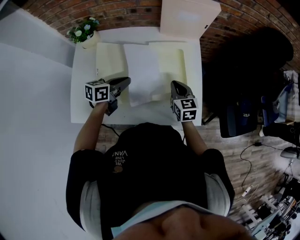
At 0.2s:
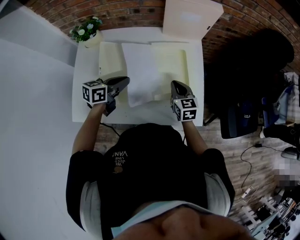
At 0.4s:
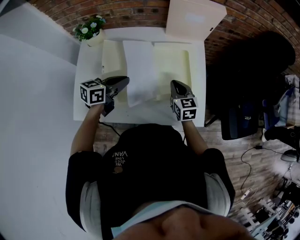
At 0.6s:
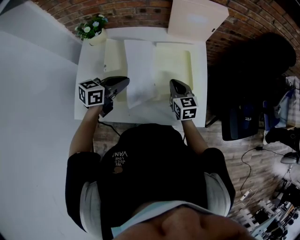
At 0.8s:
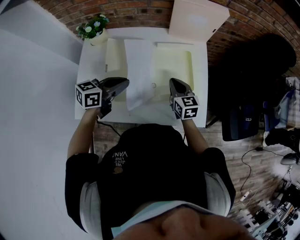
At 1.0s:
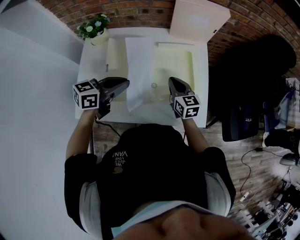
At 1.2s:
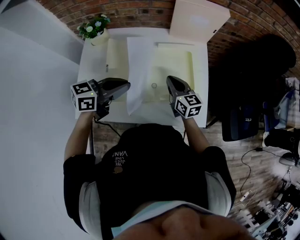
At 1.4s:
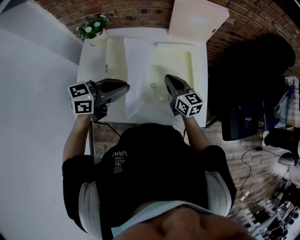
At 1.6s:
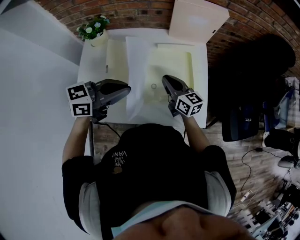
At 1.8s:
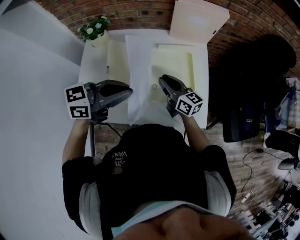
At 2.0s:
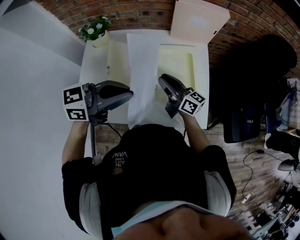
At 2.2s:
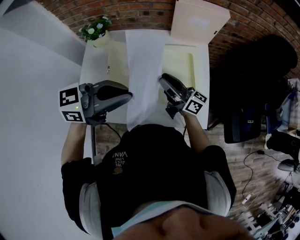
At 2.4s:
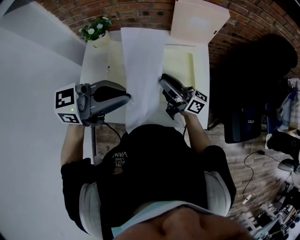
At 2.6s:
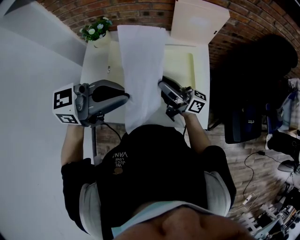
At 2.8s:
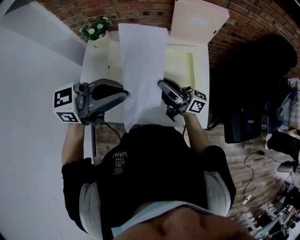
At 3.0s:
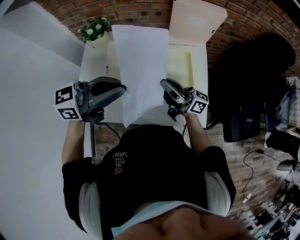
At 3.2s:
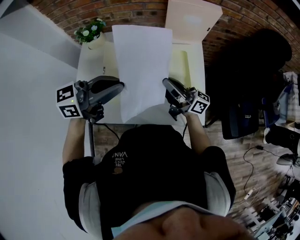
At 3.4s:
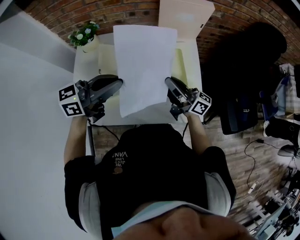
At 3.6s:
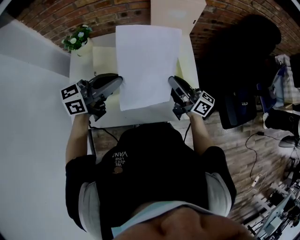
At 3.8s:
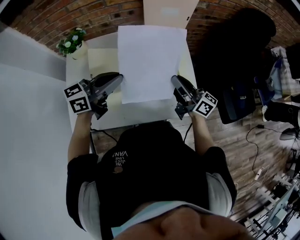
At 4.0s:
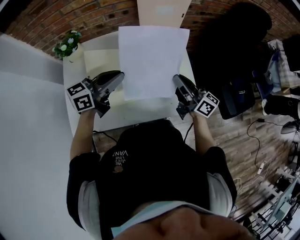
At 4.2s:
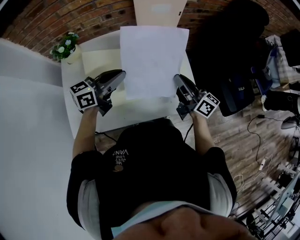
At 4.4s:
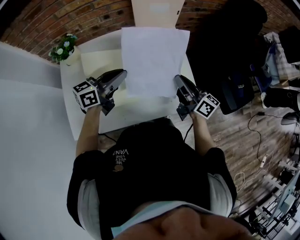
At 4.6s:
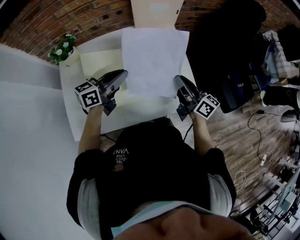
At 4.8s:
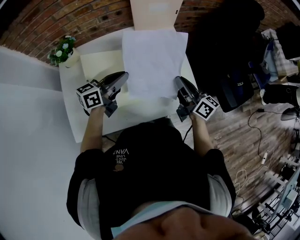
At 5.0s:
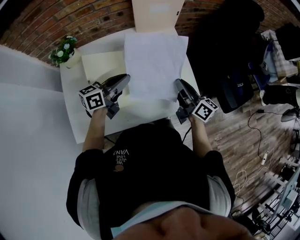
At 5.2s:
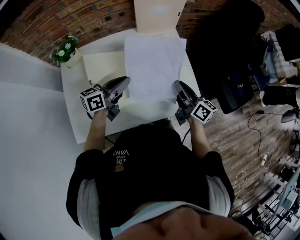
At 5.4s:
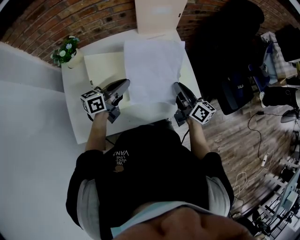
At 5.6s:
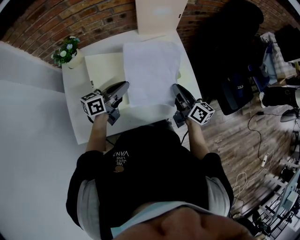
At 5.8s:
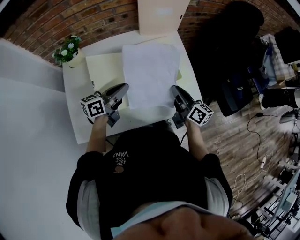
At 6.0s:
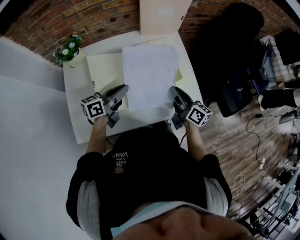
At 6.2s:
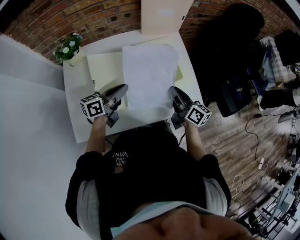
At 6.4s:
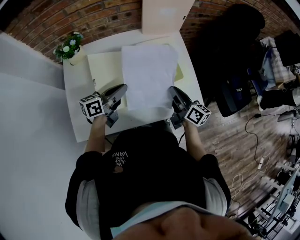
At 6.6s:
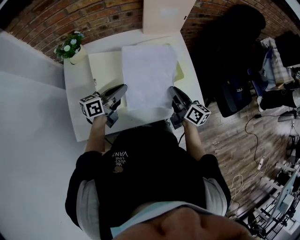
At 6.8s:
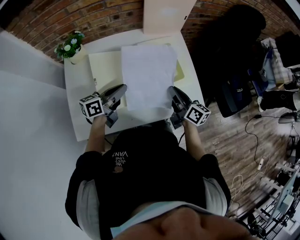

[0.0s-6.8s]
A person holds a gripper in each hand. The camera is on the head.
0.0s to 1.4s: The right gripper moves to the left and upward, about 10 cm, and swivels roughly 20 degrees. Meanwhile the left gripper shifts roughly 15 cm upward and backward, and swivels approximately 20 degrees.
1.4s to 2.8s: The two grippers go some 10 cm upward. The right gripper angles its fingers upward, by some 40 degrees.
2.8s to 4.0s: The right gripper changes place by roughly 15 cm, and turns by some 40 degrees, while the left gripper travels downward by about 10 cm.
4.0s to 5.4s: The left gripper goes approximately 10 cm downward. Meanwhile the right gripper moves roughly 5 cm.
5.4s to 6.8s: The right gripper moves approximately 5 cm. Meanwhile the left gripper ends up approximately 5 cm from where it was.

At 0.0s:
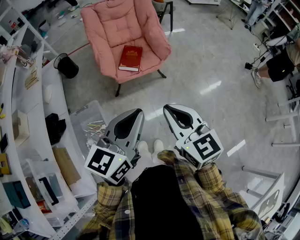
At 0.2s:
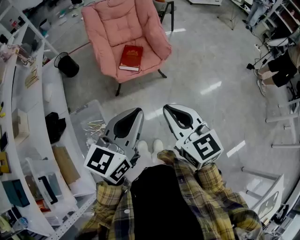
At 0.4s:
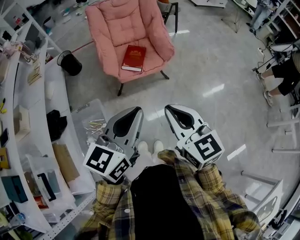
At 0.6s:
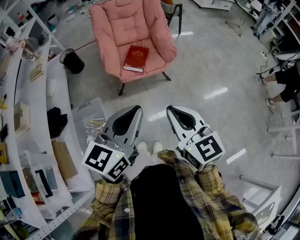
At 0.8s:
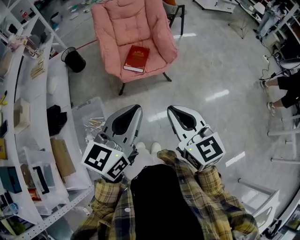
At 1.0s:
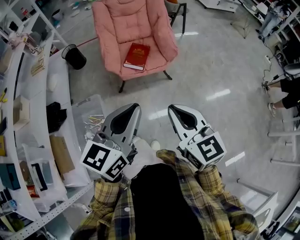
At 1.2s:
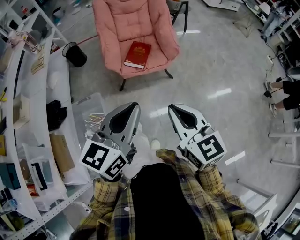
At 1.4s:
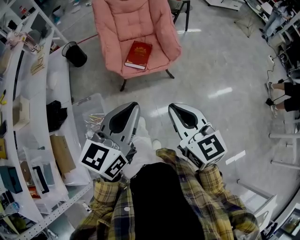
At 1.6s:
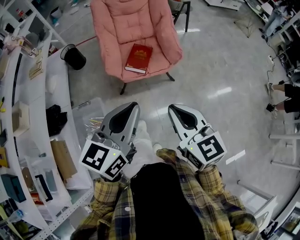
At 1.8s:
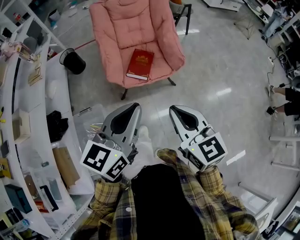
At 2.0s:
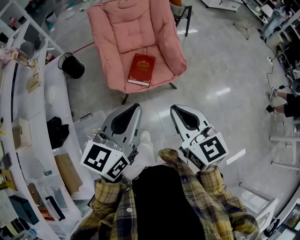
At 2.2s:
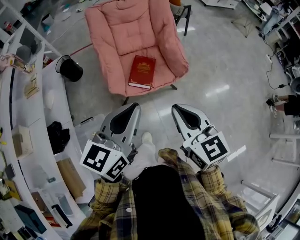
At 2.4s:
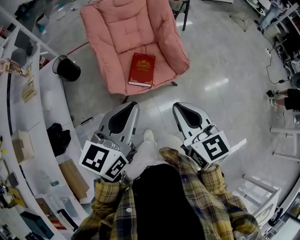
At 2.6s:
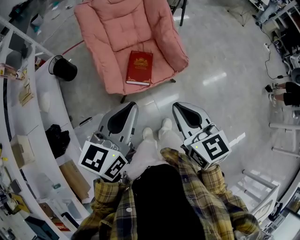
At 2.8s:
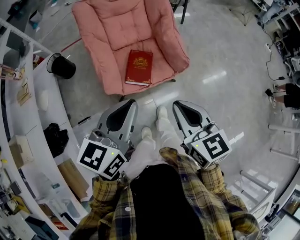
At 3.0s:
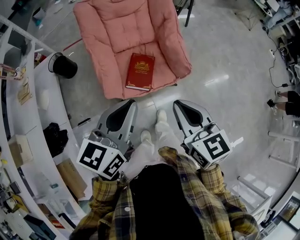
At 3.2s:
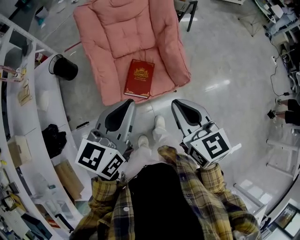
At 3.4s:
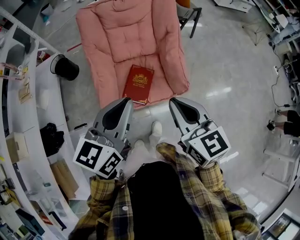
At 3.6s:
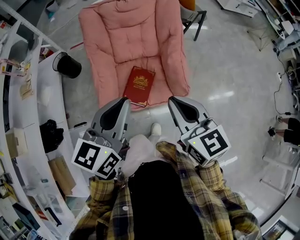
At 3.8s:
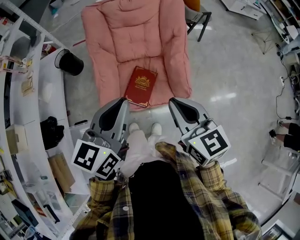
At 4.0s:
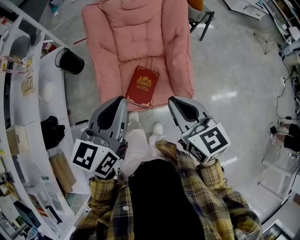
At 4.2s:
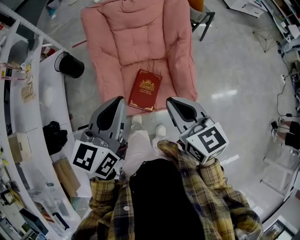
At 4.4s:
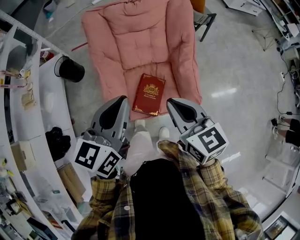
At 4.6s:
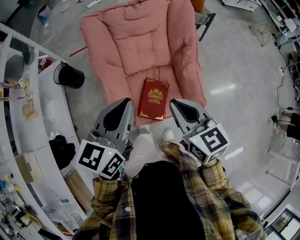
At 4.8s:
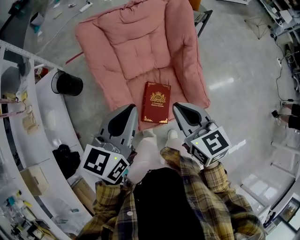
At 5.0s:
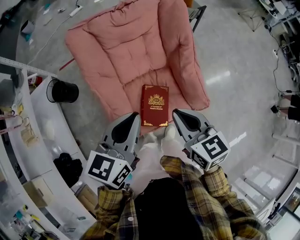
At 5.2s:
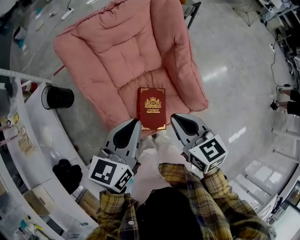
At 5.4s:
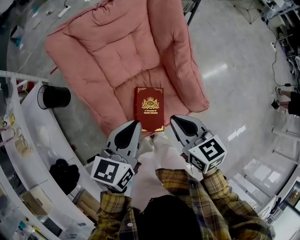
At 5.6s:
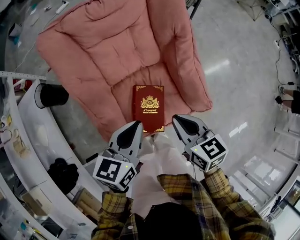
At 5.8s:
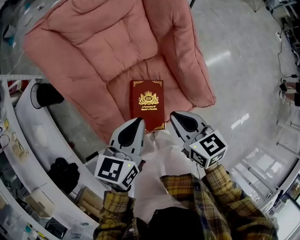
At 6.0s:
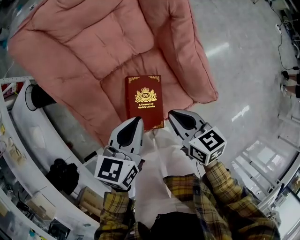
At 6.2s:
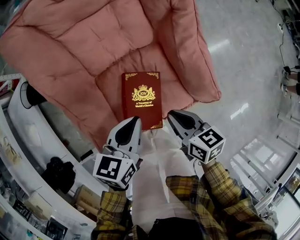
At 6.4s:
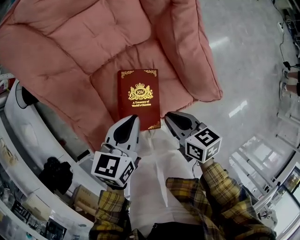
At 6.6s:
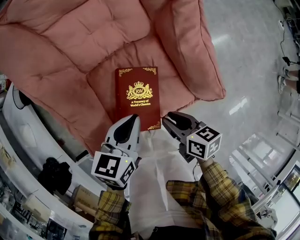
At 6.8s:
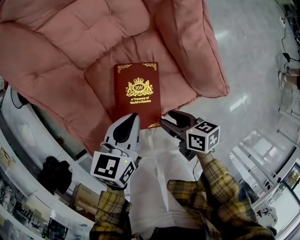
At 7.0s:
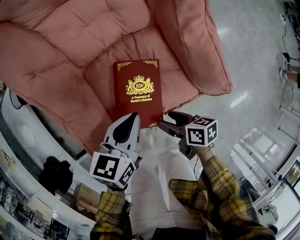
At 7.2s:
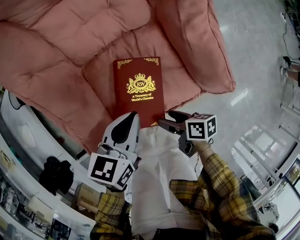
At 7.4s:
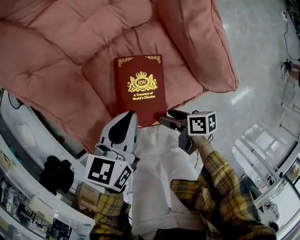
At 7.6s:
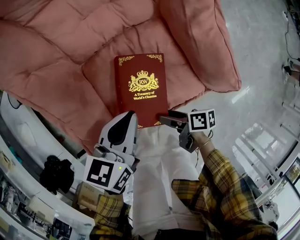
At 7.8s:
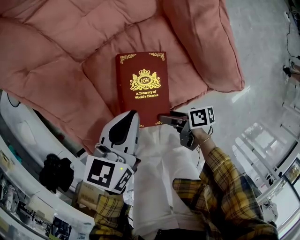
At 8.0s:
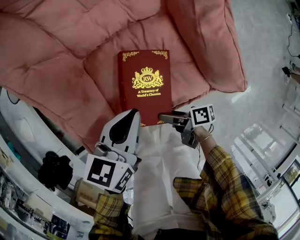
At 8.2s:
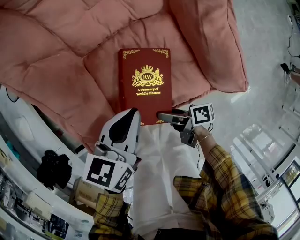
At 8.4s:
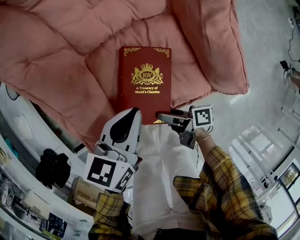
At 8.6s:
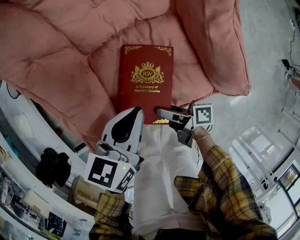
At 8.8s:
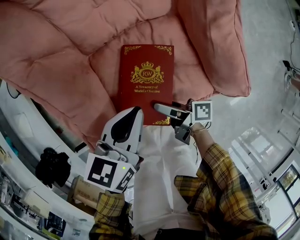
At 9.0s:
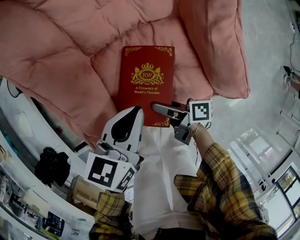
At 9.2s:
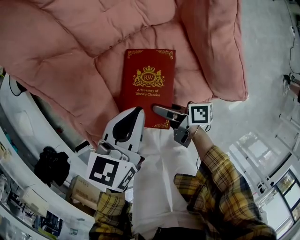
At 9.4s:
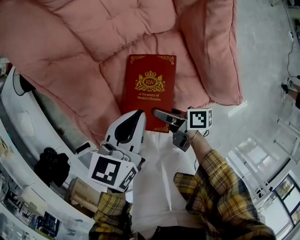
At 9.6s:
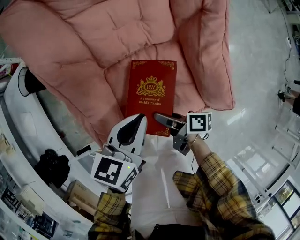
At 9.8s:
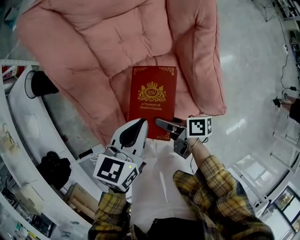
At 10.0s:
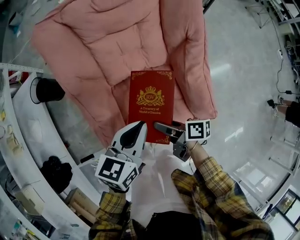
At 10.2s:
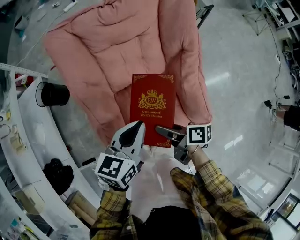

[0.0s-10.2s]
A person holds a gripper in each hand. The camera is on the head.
0.0s to 1.4s: The left gripper shifts some 5 cm forward, while the right gripper changes place by roughly 5 cm.
1.4s to 3.0s: The two grippers go approximately 30 cm forward.
3.0s to 4.4s: The grippers both shift forward by roughly 20 cm.
4.4s to 5.8s: Both grippers travel together downward, about 25 cm. The right gripper rotates approximately 20 degrees. Meanwhile the left gripper turns by about 30 degrees.
5.8s to 7.2s: The right gripper is displaced downward by approximately 25 cm, rotates around the line of its fingers by approximately 40 degrees, clockwise from behind, and opens its fingers. Meanwhile the left gripper goes approximately 15 cm downward.
7.2s to 8.8s: The right gripper is displaced forward by roughly 5 cm, and rotates roughly 30 degrees.
8.8s to 10.2s: The two grippers go approximately 20 cm upward. The right gripper rotates some 20 degrees.

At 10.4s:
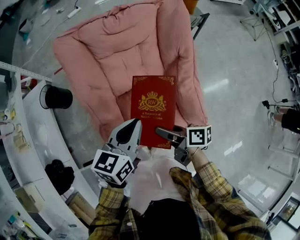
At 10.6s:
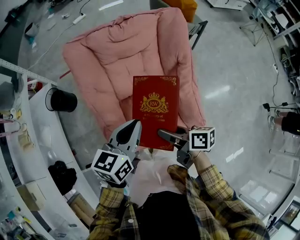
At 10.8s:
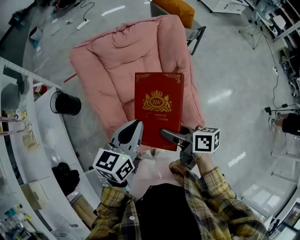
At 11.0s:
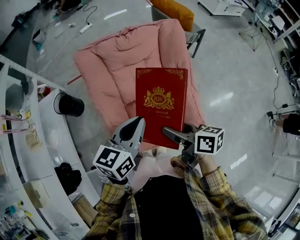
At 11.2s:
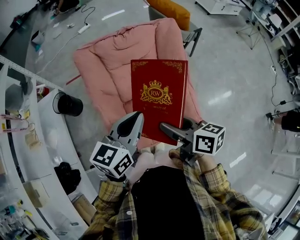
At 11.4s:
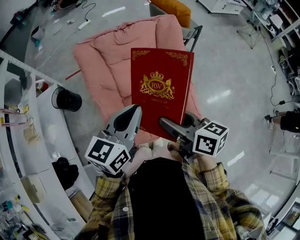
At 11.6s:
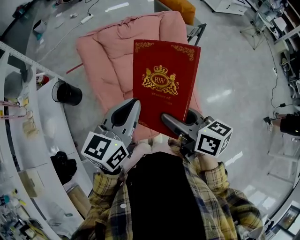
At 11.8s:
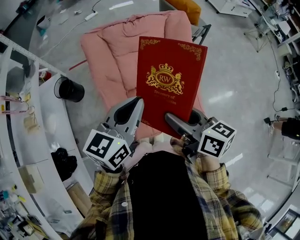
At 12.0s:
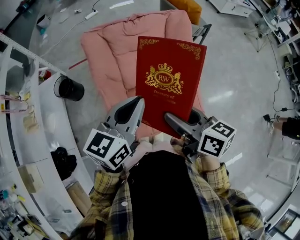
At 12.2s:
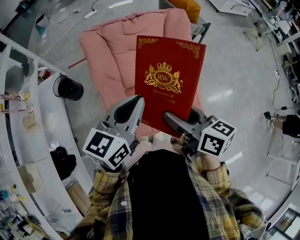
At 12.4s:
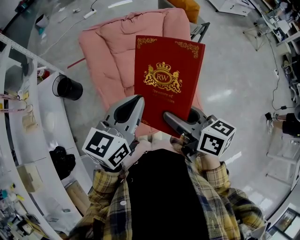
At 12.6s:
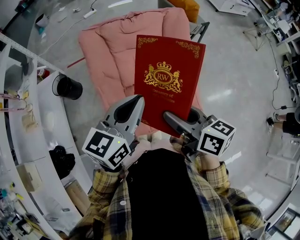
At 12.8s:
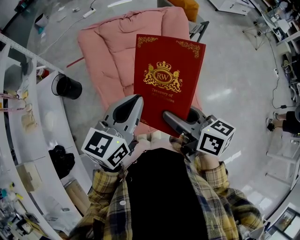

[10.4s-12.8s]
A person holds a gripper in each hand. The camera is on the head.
10.4s to 11.6s: The two grippers go some 20 cm upward. The right gripper swivels approximately 40 degrees.
11.6s to 12.8s: The grippers move only a little.

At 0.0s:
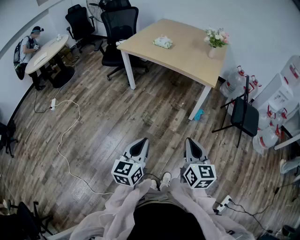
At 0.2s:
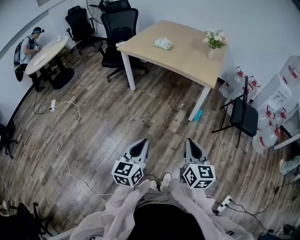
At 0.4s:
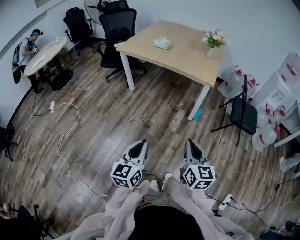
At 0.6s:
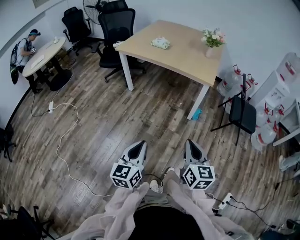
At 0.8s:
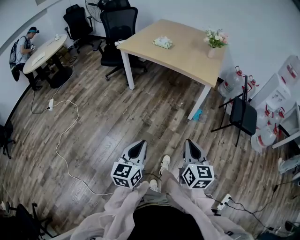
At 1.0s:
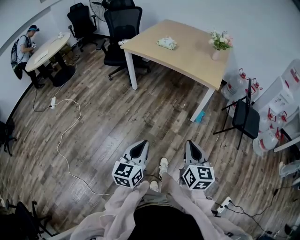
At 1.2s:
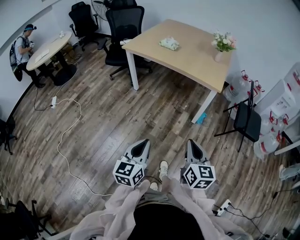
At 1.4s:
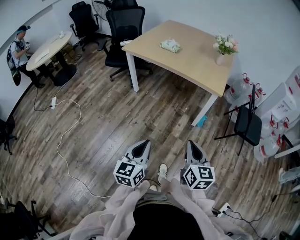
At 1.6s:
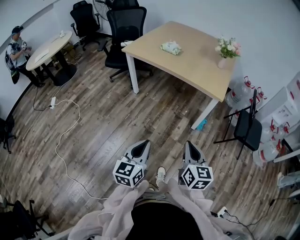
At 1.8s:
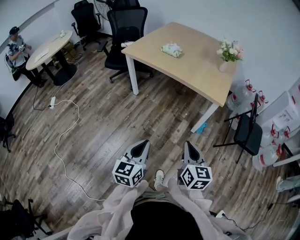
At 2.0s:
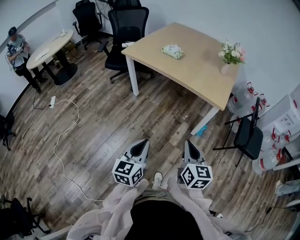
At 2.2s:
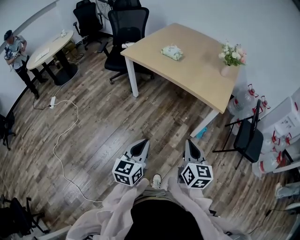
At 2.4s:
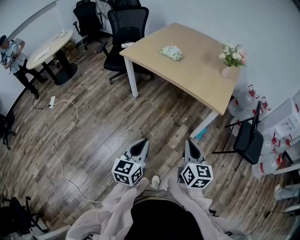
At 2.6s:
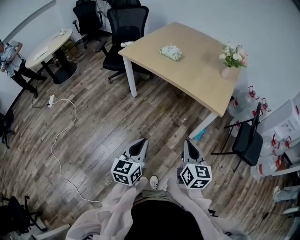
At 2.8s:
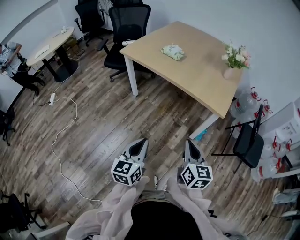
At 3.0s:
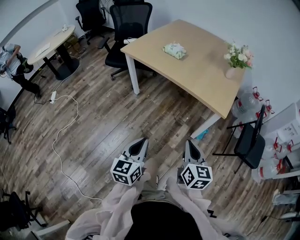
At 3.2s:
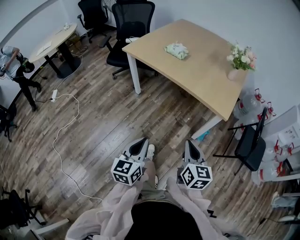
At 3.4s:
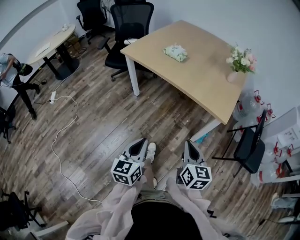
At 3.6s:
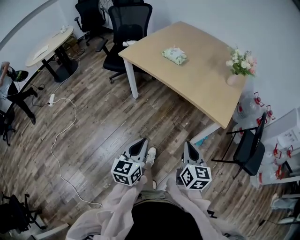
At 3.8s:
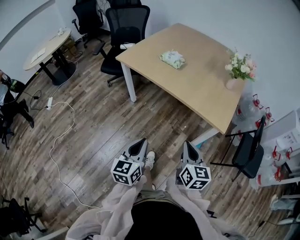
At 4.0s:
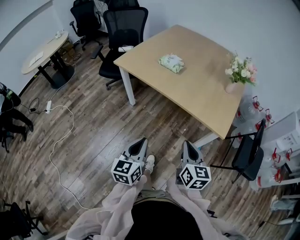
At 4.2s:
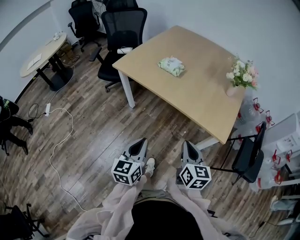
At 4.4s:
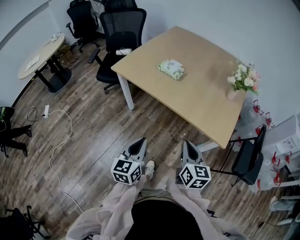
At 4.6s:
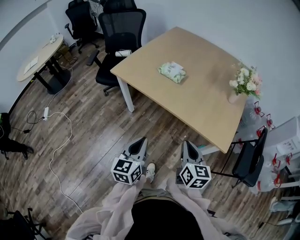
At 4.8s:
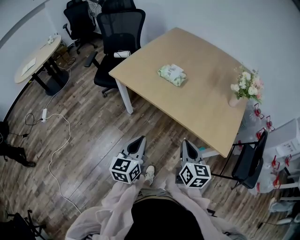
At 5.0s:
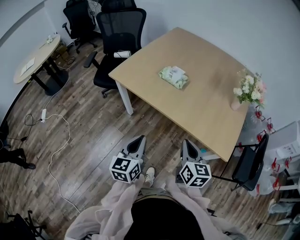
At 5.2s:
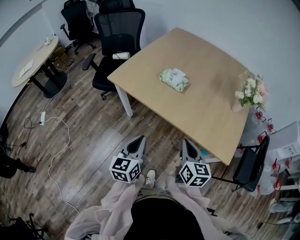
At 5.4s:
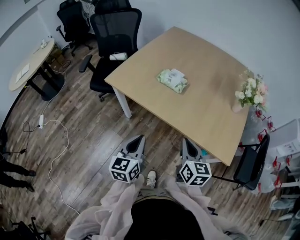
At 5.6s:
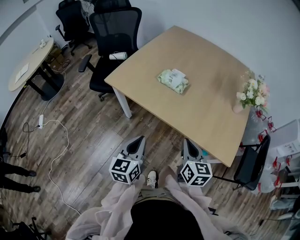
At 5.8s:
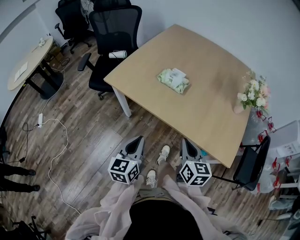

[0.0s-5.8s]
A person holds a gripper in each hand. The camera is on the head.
0.0s to 1.4s: The right gripper travels forward by some 5 cm. The left gripper changes place by roughly 5 cm.
1.4s to 2.8s: Both grippers move forward, approximately 15 cm.
2.8s to 4.4s: The two grippers go approximately 20 cm forward.
4.4s to 5.8s: The grippers both shift forward by some 15 cm.
